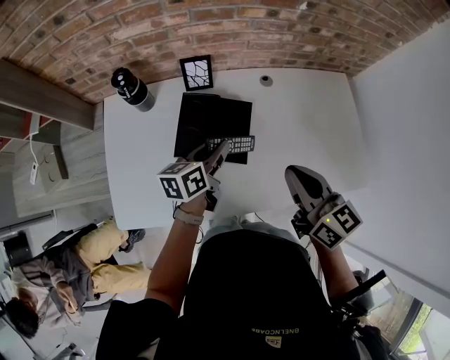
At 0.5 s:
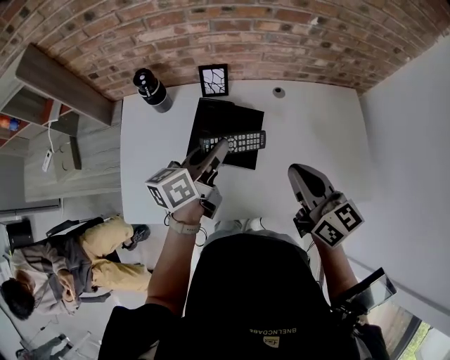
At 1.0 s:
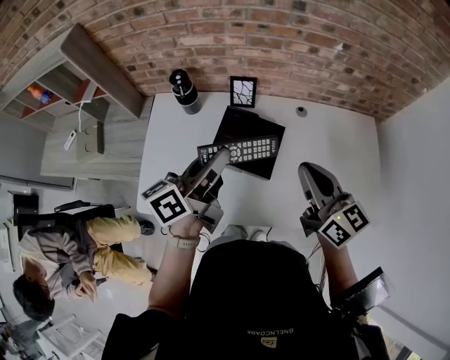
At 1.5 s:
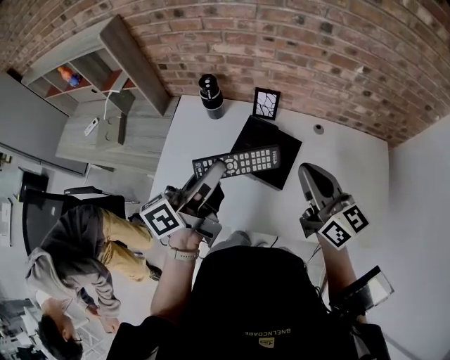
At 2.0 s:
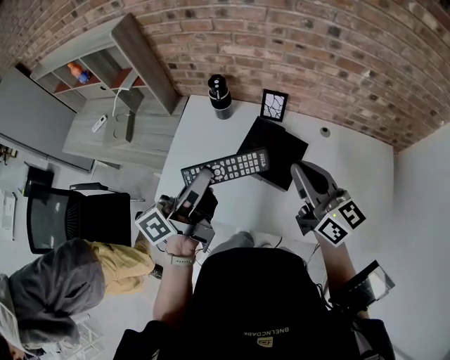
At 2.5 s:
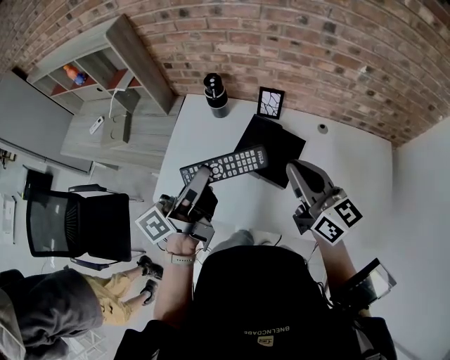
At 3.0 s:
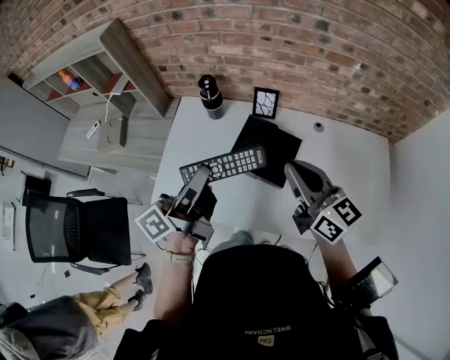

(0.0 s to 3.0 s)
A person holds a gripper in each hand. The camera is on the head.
0.0 s - 1.5 s: The left gripper shifts roughly 25 cm upward, to the left and backward, and angles its fingers upward, by some 30 degrees, while the right gripper shifts about 10 cm upward and to the left, and changes its angle by some 20 degrees.
1.5 s - 3.0 s: The grippers stay close to where they were, moving slightly.

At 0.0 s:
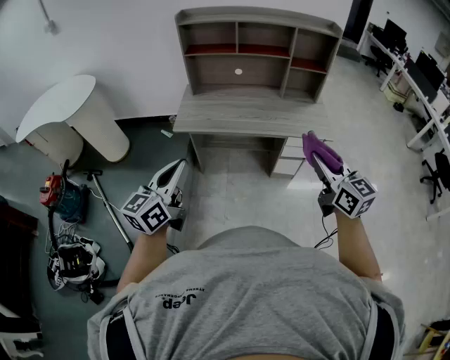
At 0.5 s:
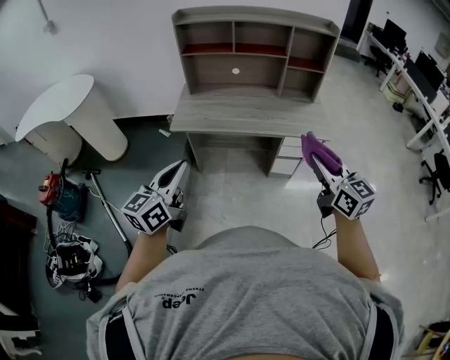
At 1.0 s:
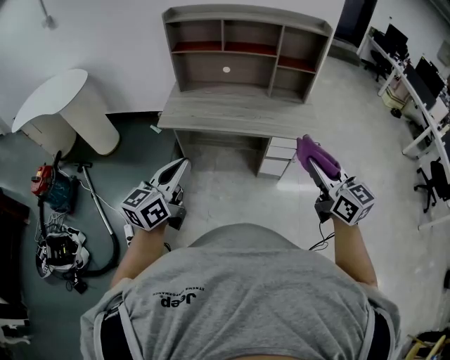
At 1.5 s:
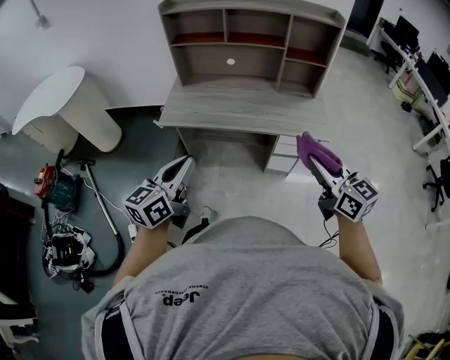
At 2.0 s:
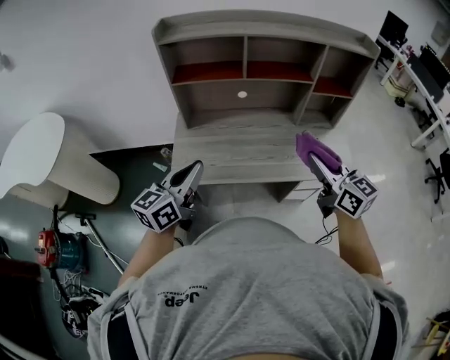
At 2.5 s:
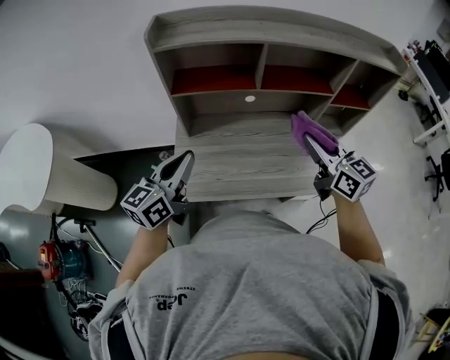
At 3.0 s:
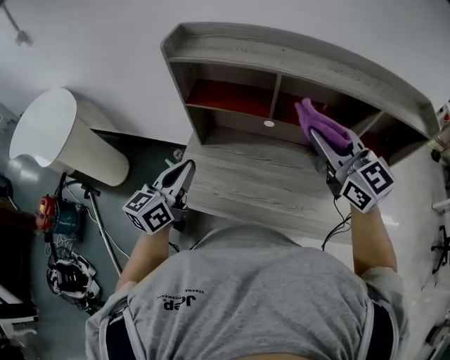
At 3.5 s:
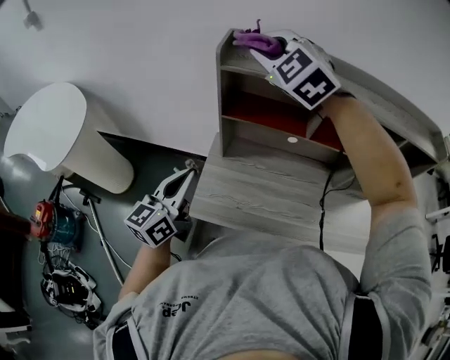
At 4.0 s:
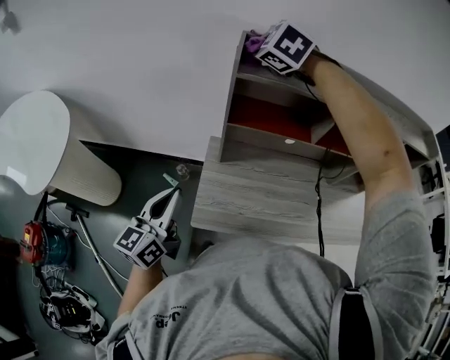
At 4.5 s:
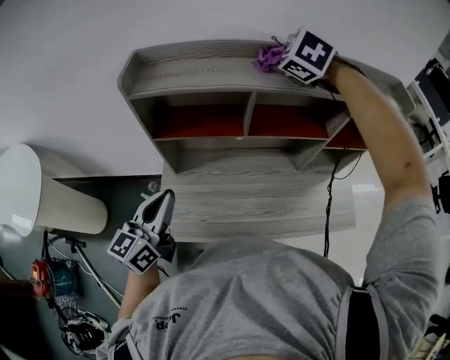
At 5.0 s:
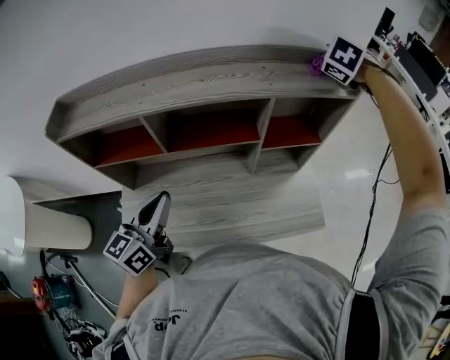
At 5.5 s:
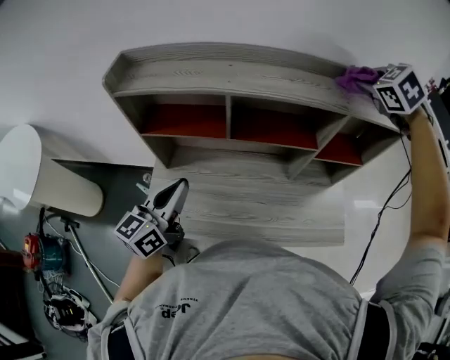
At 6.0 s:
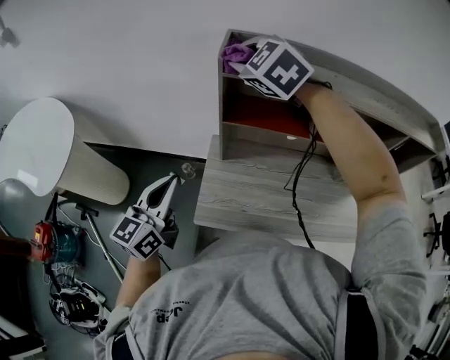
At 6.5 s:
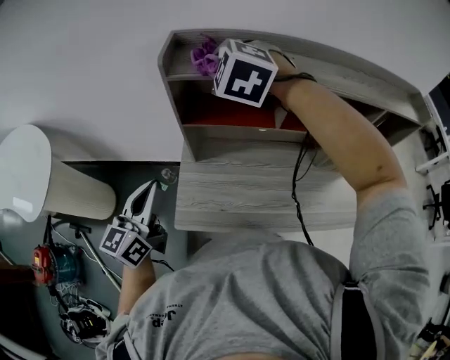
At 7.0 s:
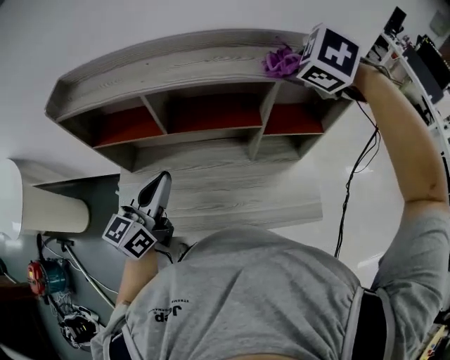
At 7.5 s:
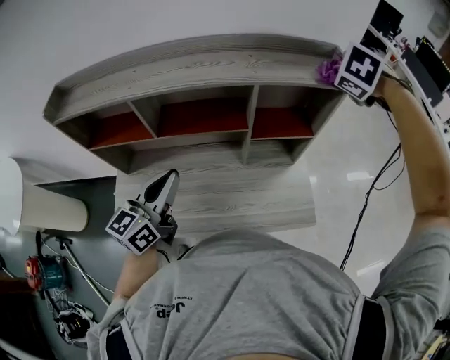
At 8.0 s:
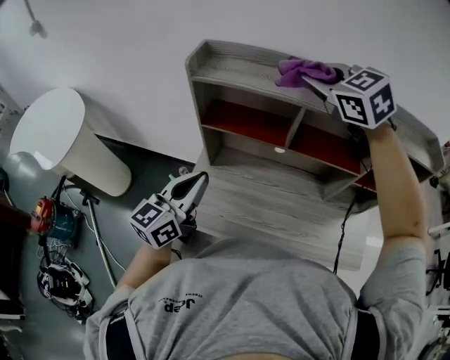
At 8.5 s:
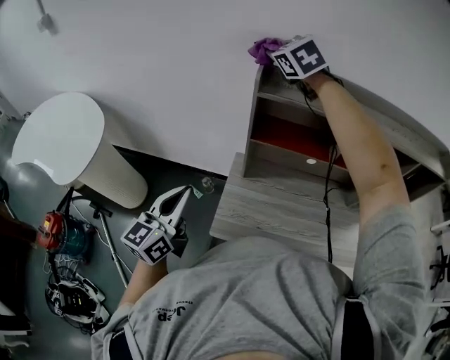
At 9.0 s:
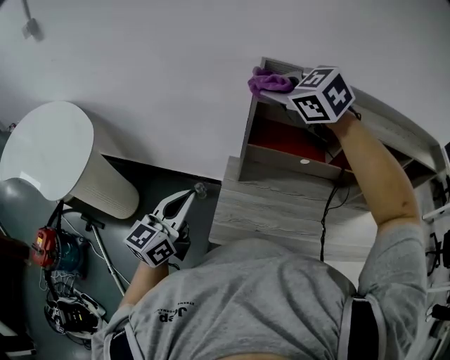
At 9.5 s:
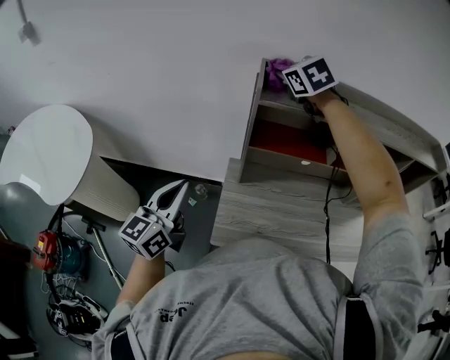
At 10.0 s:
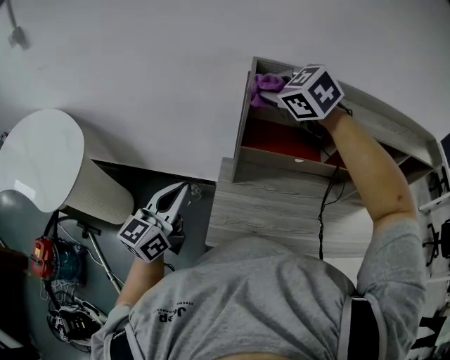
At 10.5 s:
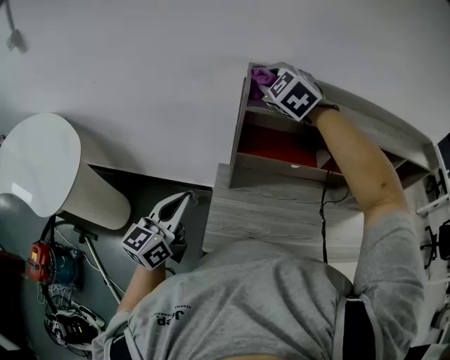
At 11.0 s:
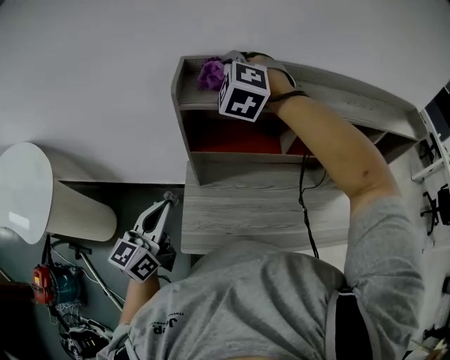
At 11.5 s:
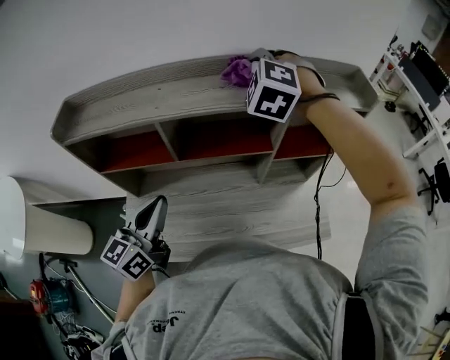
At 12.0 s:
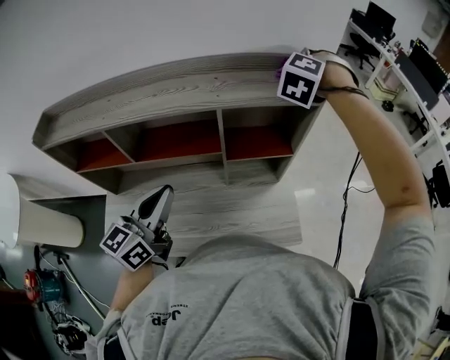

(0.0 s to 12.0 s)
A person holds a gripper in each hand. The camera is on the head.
0.0 s - 2.0 s: Both grippers move forward, some 35 cm.
2.0 s - 4.0 s: The left gripper shifts about 30 cm to the left and forward; the right gripper heads forward and to the left, covering approximately 60 cm, and twists roughly 60 degrees counterclockwise, seen from behind.
8.0 s - 10.0 s: The left gripper heads to the left, covering about 20 cm; the right gripper moves left and right over some 25 cm, changing direction 2 times.
10.0 s - 12.0 s: Both grippers are carried approximately 70 cm. The right gripper changes its angle by approximately 60 degrees.

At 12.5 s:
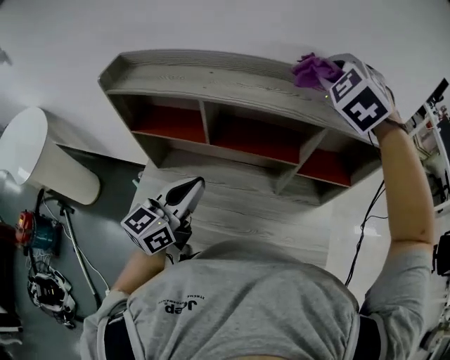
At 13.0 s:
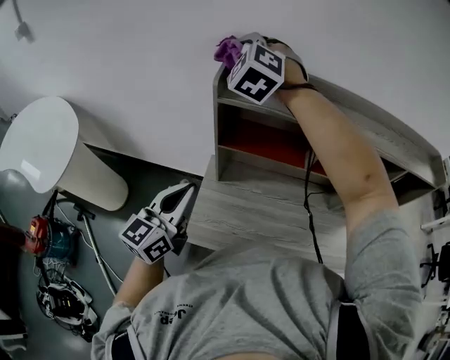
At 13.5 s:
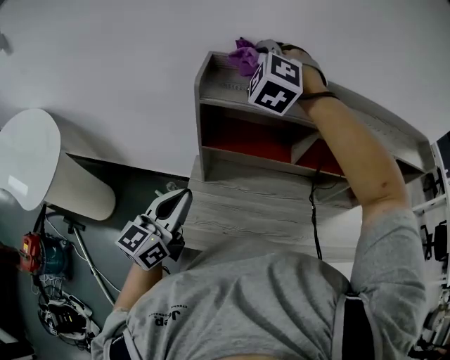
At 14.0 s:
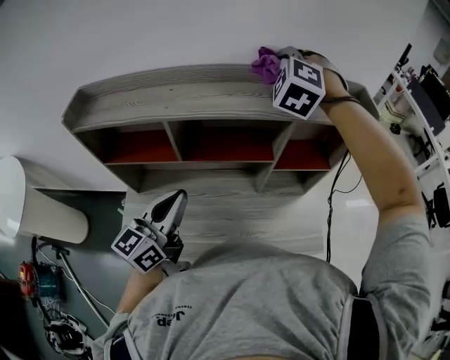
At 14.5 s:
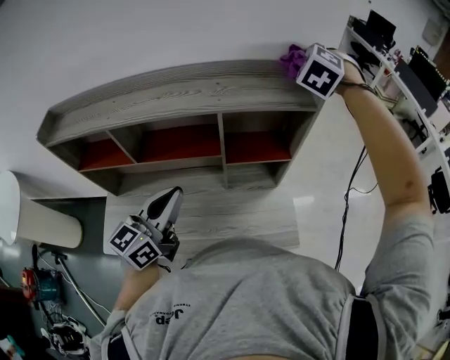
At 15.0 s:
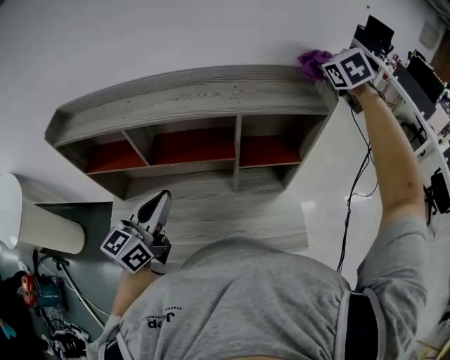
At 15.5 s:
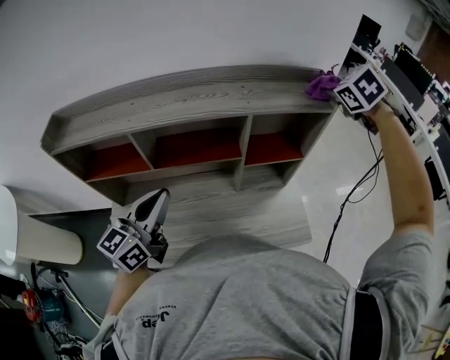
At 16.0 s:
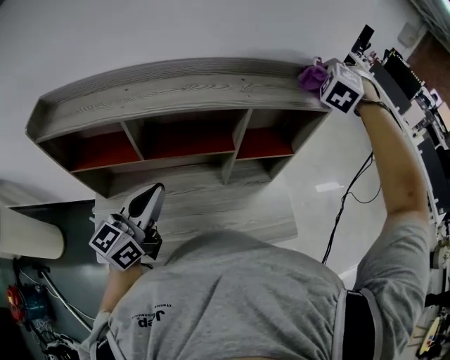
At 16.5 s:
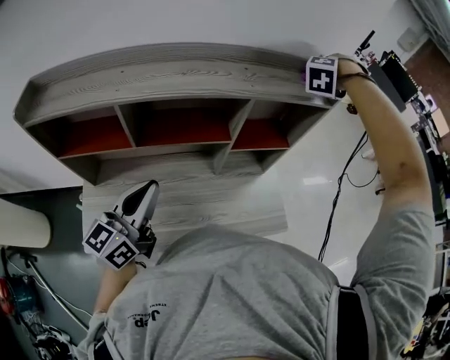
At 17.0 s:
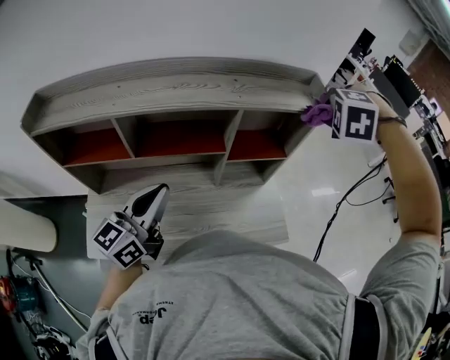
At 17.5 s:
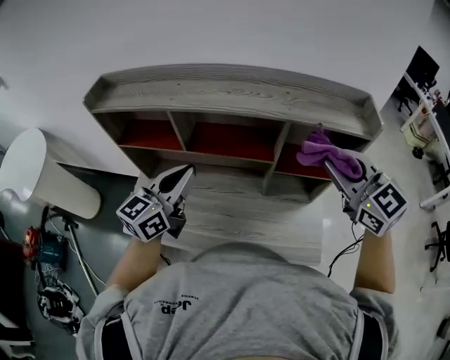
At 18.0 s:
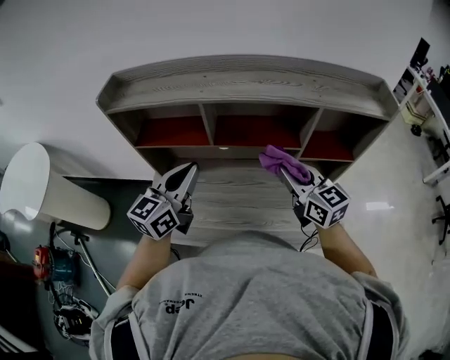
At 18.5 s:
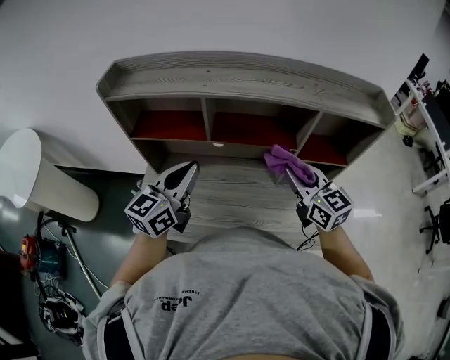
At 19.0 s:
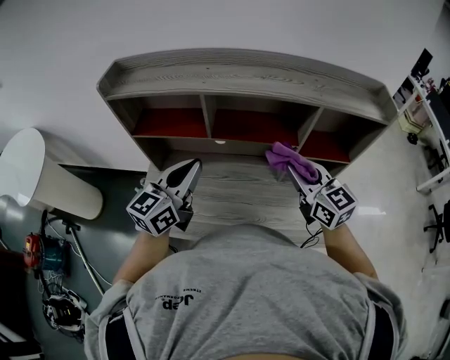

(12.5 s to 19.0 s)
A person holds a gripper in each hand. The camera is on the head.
12.5 s - 14.5 s: The right gripper rotates roughly 20 degrees. Meanwhile the left gripper reaches about 5 cm downward, then returns.
14.5 s - 17.0 s: The right gripper shifts by about 15 cm, and changes its angle by some 40 degrees.
17.0 s - 19.0 s: The right gripper ends up approximately 30 cm from where it was, and tilts its fingers some 50 degrees upward; the left gripper shifts by roughly 10 cm.

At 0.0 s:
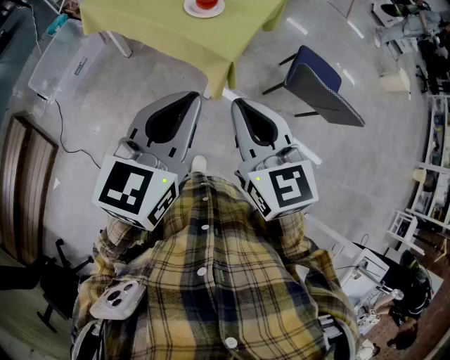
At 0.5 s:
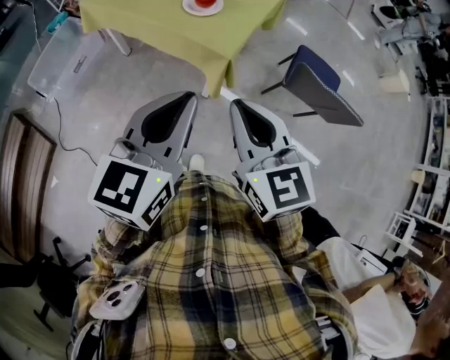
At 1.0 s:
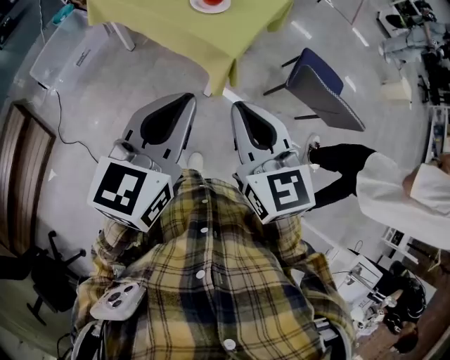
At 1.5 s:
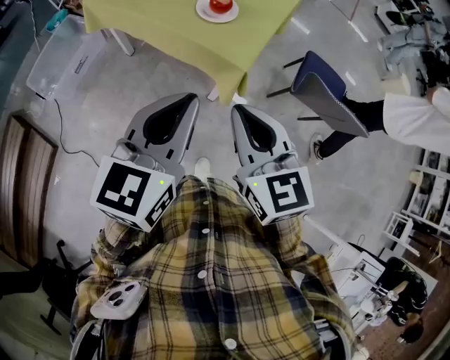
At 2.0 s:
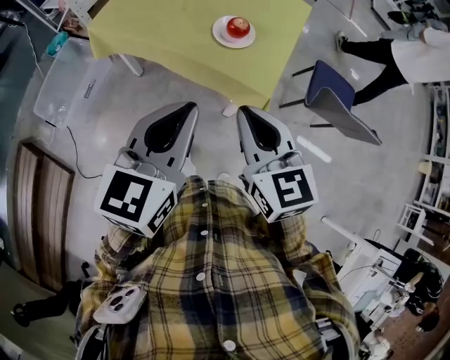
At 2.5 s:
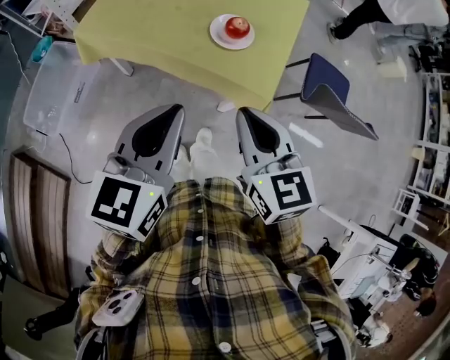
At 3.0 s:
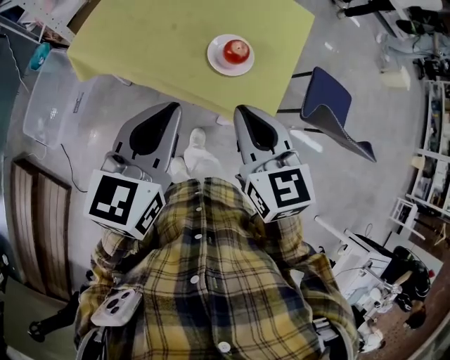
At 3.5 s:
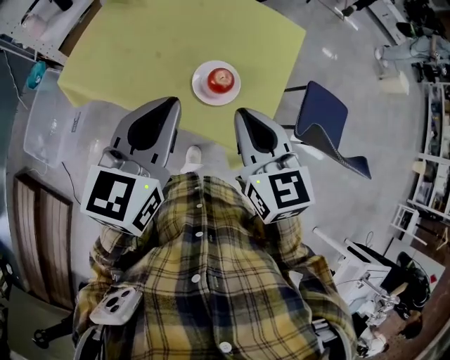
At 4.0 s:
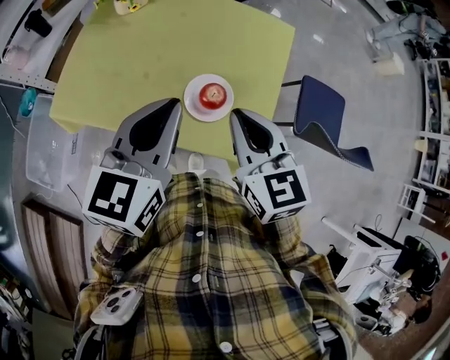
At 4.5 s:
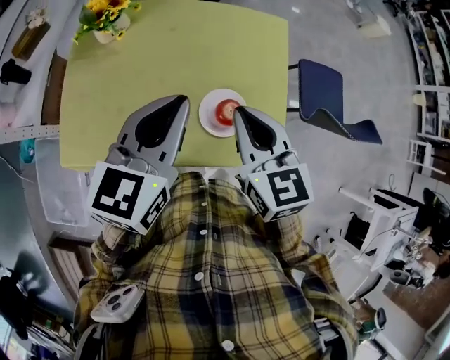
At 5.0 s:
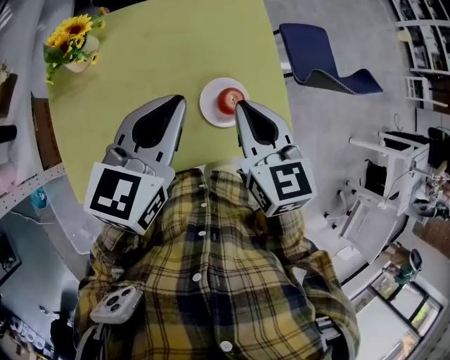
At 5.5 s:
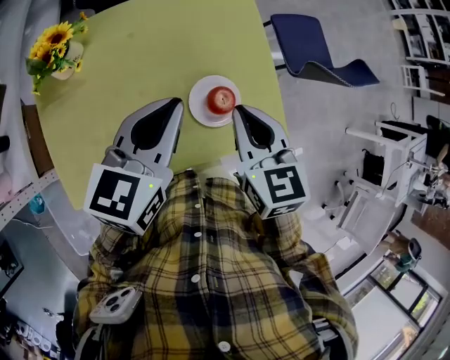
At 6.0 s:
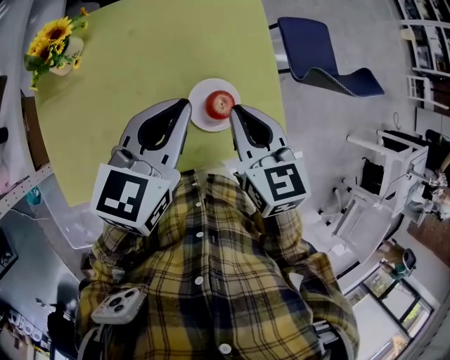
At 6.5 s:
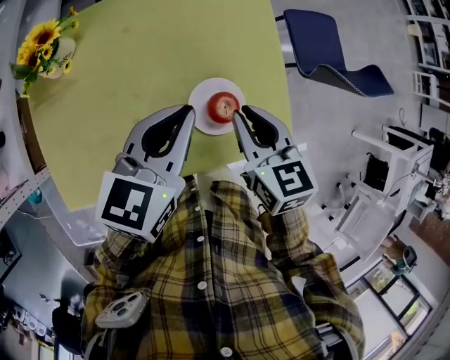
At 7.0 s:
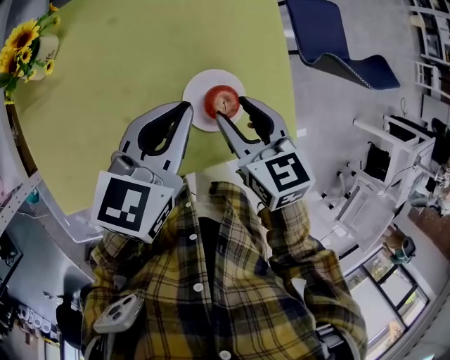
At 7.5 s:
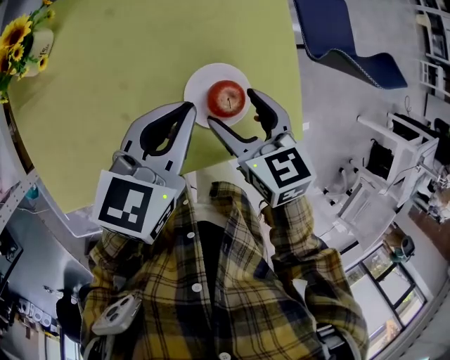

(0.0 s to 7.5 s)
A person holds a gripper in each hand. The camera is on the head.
0.0 s - 2.0 s: Both grippers travel together to the left and forward, roughly 20 cm.
2.0 s - 4.0 s: Both grippers move forward, some 30 cm.
4.0 s - 5.5 s: The left gripper changes place by roughly 15 cm, and turns by roughly 30 degrees, while the right gripper changes place by approximately 10 cm, and turns by roughly 30 degrees.
5.5 s - 7.5 s: Both grippers travel together downward, about 15 cm. The right gripper opens its fingers.
